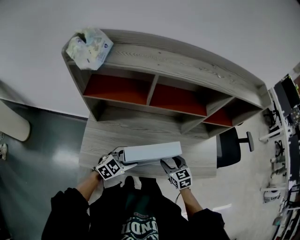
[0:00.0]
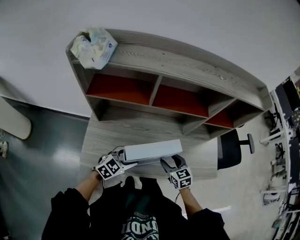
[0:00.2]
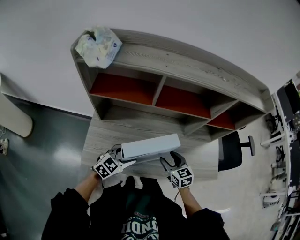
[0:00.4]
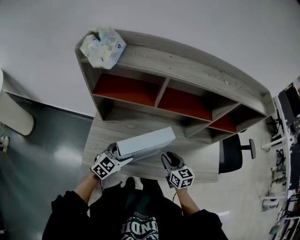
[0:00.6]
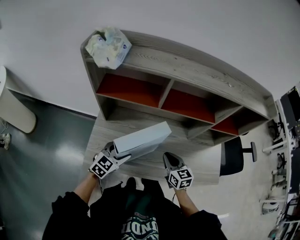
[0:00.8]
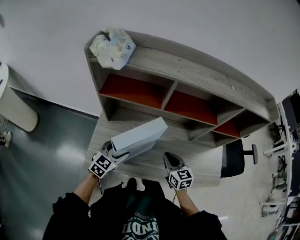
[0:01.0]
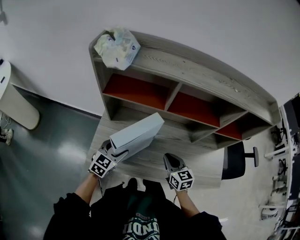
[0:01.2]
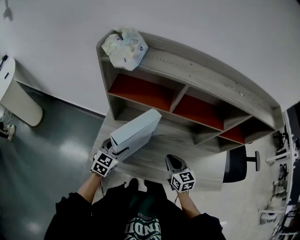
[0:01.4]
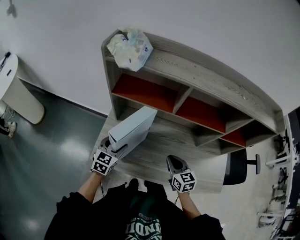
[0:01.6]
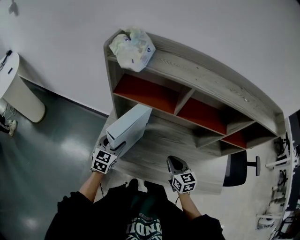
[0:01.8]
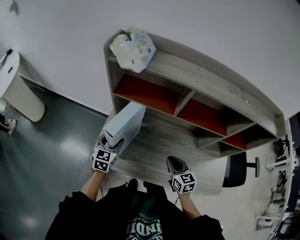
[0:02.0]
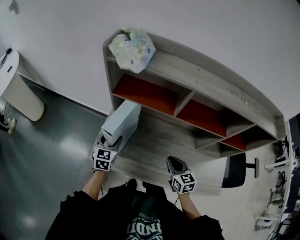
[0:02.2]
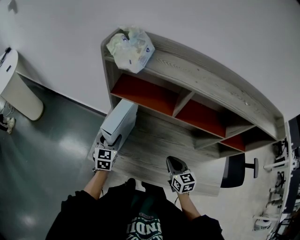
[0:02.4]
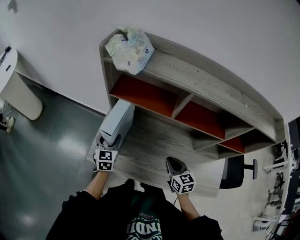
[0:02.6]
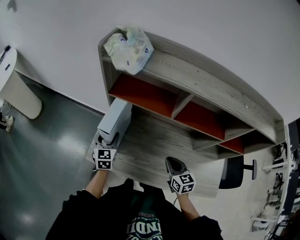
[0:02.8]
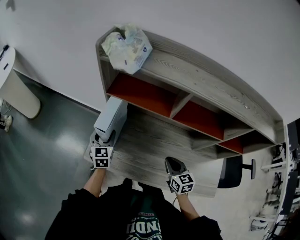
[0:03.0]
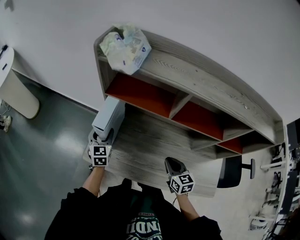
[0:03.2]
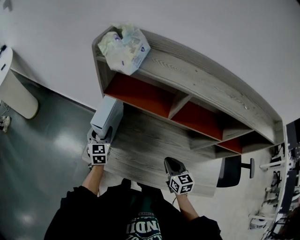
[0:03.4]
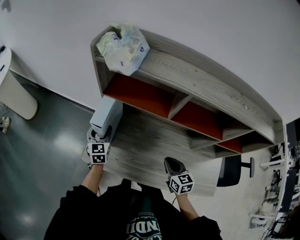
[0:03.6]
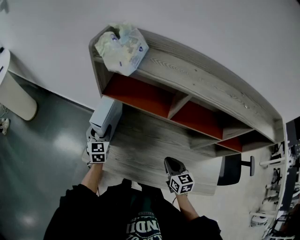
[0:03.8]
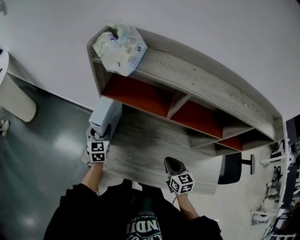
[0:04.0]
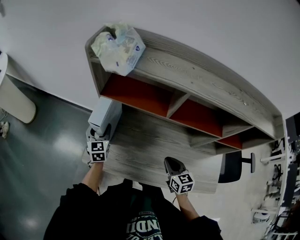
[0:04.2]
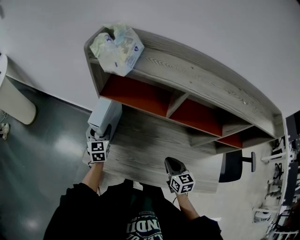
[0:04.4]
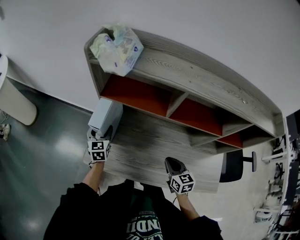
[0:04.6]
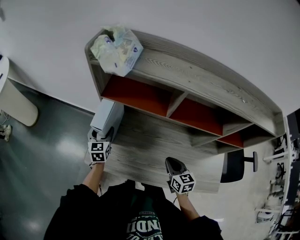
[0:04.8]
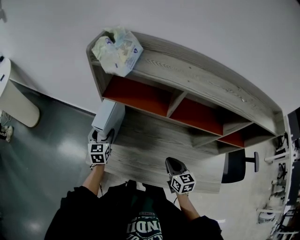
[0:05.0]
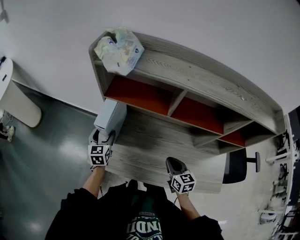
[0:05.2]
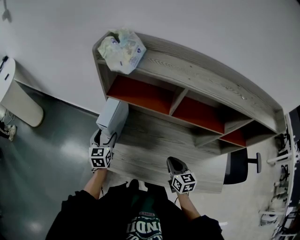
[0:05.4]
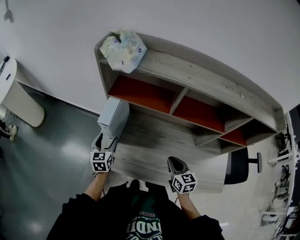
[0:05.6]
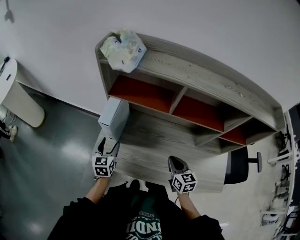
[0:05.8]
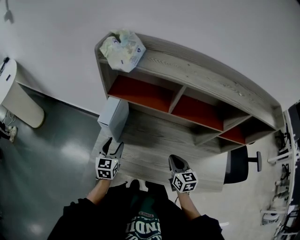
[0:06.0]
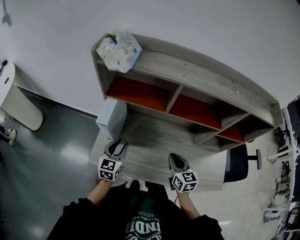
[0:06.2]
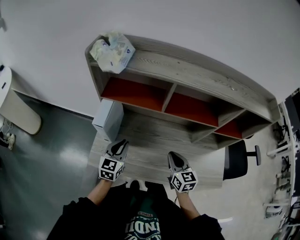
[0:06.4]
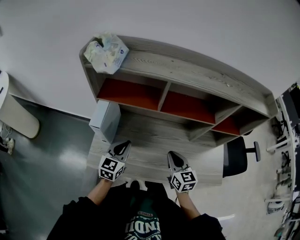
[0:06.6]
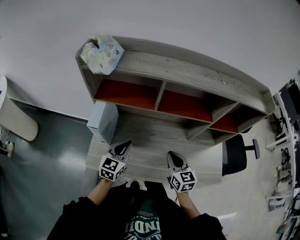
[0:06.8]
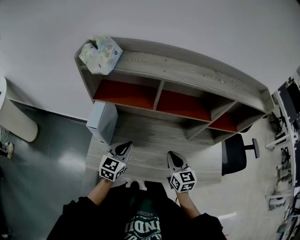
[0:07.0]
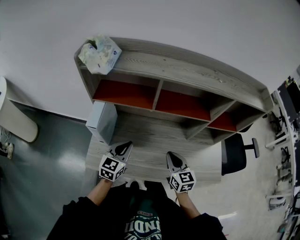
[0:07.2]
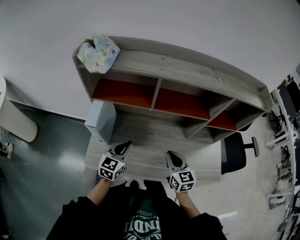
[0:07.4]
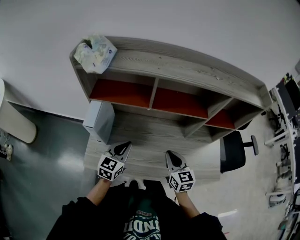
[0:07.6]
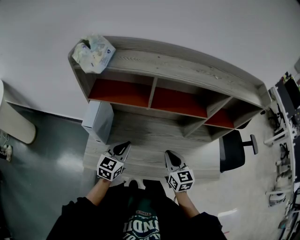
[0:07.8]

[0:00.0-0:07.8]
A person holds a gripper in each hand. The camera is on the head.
0:00.0 to 0:01.6: The left gripper is displaced to the left by roughly 20 cm, and swivels approximately 40 degrees. The right gripper heads to the left, covering roughly 10 cm, and closes up.
0:01.6 to 0:03.2: The left gripper heads forward and to the left, covering approximately 10 cm, and turns by roughly 30 degrees.
0:03.2 to 0:04.6: The grippers stay close to where they were, moving slightly.
0:04.6 to 0:06.2: The left gripper moves backward and to the right, about 15 cm, and closes.
0:06.2 to 0:07.8: The left gripper is displaced to the right by some 10 cm, and closes up.

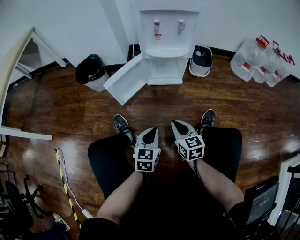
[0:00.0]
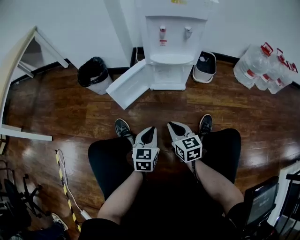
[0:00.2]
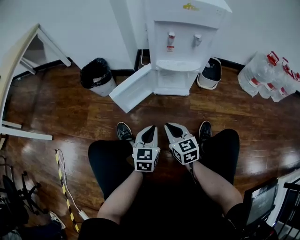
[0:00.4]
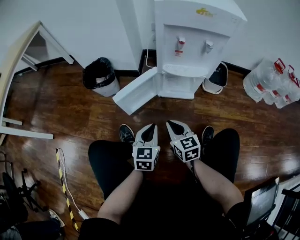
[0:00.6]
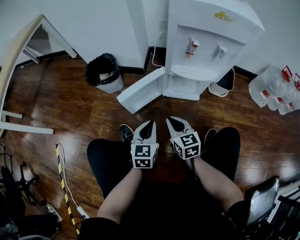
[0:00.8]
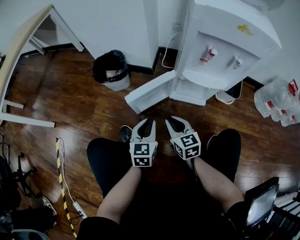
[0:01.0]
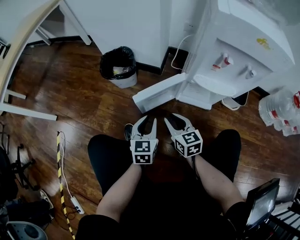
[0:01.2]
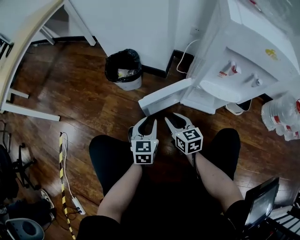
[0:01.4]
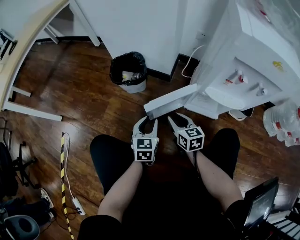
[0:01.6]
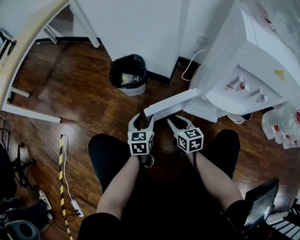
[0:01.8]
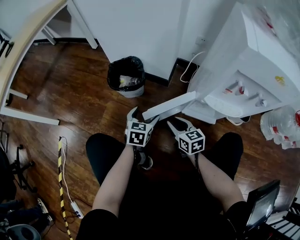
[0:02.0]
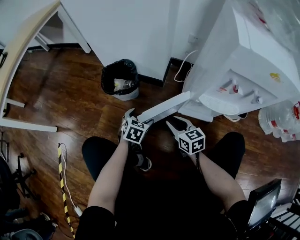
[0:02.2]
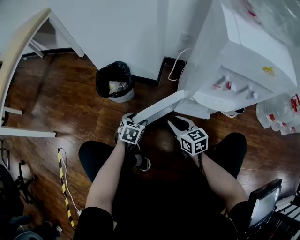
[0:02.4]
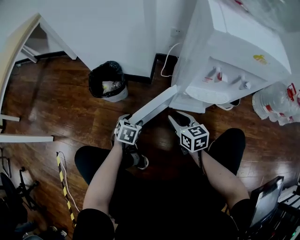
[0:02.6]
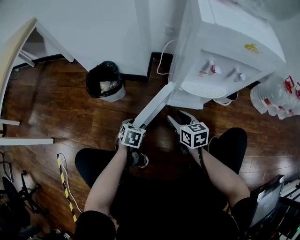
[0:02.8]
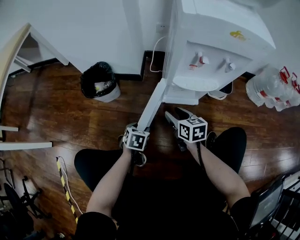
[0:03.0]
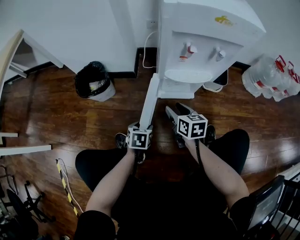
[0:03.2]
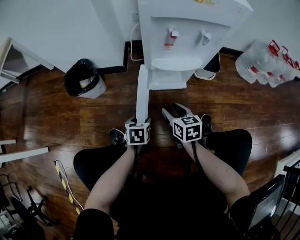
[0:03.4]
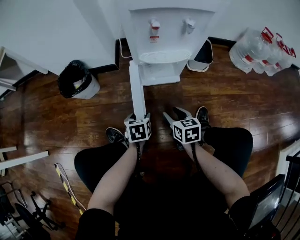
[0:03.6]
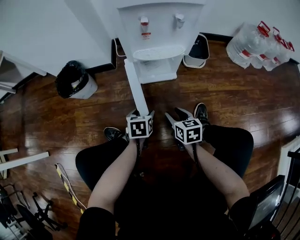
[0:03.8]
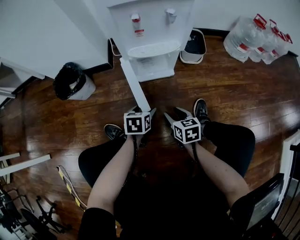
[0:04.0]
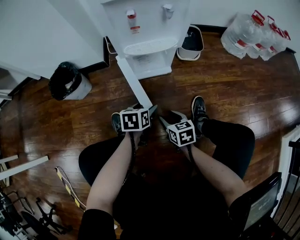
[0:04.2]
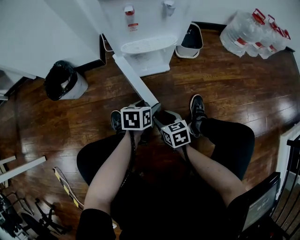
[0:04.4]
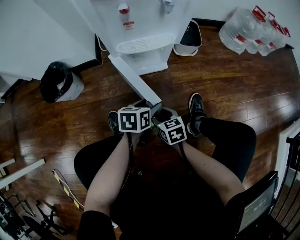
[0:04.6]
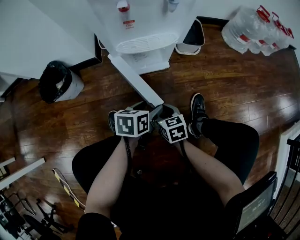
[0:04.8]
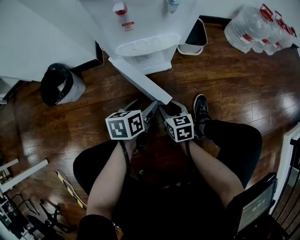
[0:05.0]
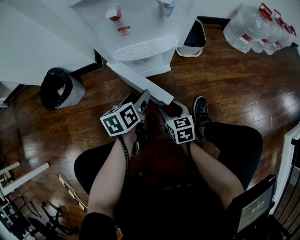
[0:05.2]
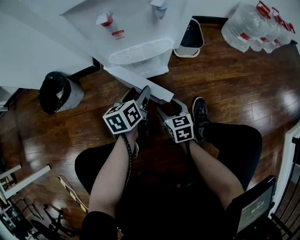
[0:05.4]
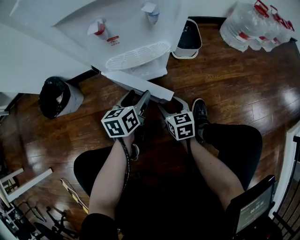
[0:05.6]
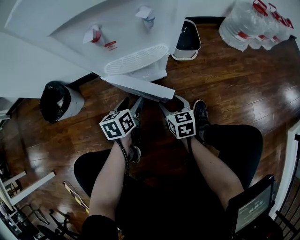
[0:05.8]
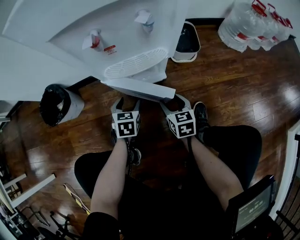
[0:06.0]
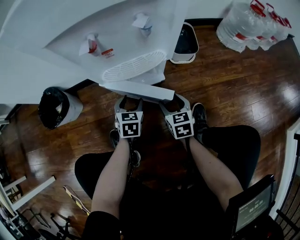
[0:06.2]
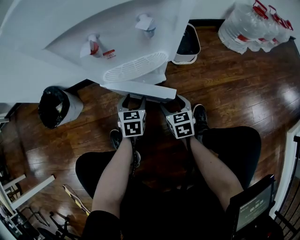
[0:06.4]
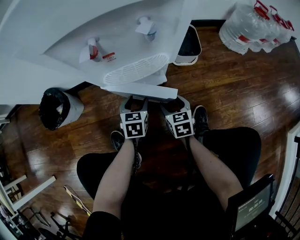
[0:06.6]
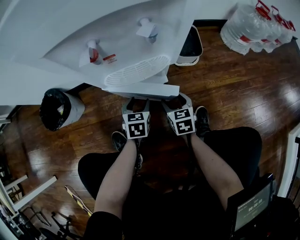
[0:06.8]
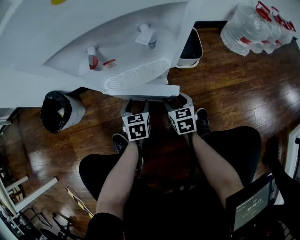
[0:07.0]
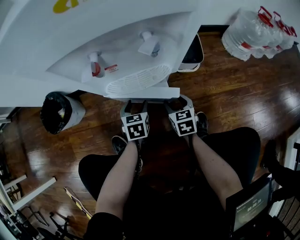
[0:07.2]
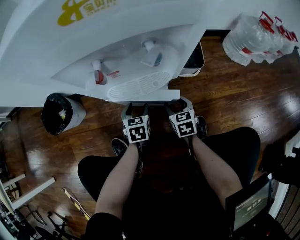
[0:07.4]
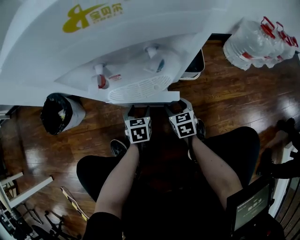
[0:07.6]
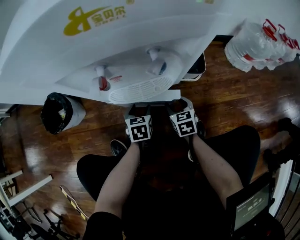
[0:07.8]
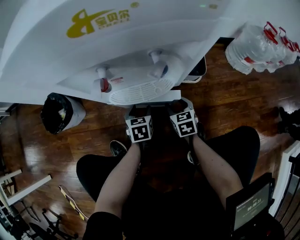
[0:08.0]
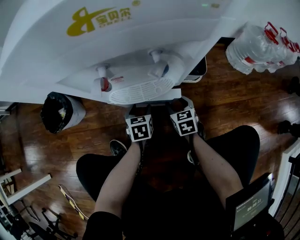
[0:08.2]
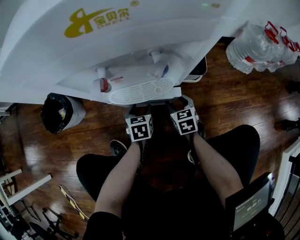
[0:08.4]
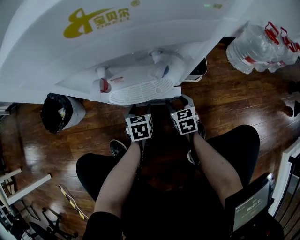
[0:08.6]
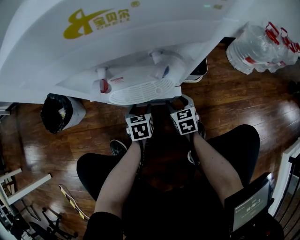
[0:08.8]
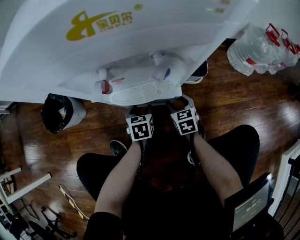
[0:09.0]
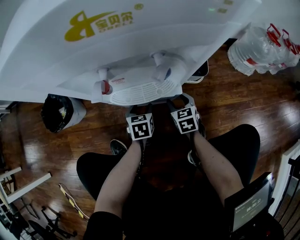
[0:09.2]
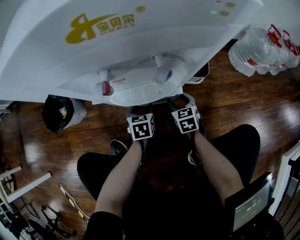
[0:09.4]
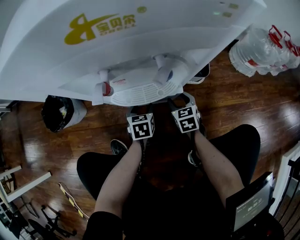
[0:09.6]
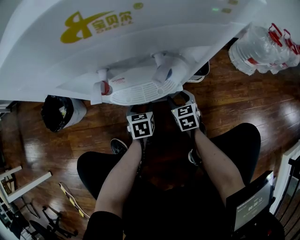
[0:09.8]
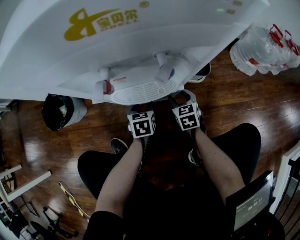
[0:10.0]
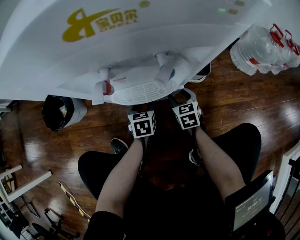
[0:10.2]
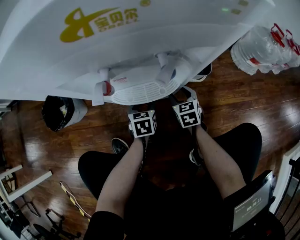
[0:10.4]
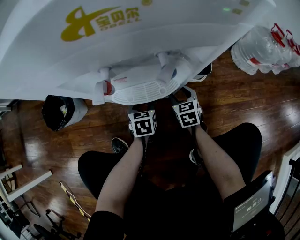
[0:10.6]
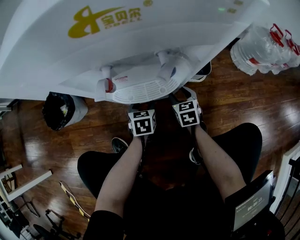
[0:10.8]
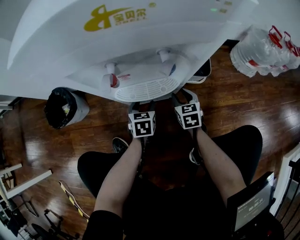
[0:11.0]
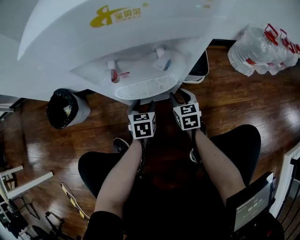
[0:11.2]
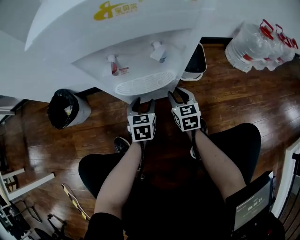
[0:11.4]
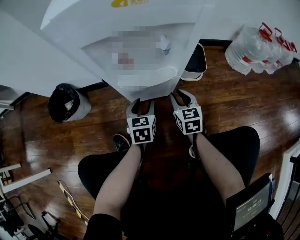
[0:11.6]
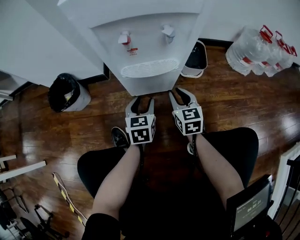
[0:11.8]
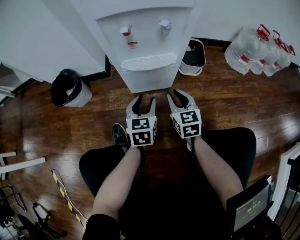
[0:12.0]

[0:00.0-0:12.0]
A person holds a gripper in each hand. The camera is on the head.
0:00.0 to 0:01.6: The two grippers go roughly 30 cm forward and to the left. The right gripper swivels roughly 20 degrees, and opens; the left gripper turns by about 20 degrees.
0:01.6 to 0:03.0: The left gripper heads downward and to the right, covering about 10 cm, moves some 10 cm forward and comes back, tips its fingers downward by some 30 degrees, and opens, then closes again. The right gripper moves to the right, roughly 10 cm.
0:03.0 to 0:04.4: The left gripper is displaced to the right by about 20 cm, and swivels some 20 degrees; the right gripper goes approximately 20 cm backward, downward and to the right.
0:04.4 to 0:06.0: The left gripper heads forward and to the left, covering roughly 15 cm, and changes its angle by about 30 degrees; the right gripper travels forward and to the right by about 15 cm.
0:06.0 to 0:07.6: The right gripper is displaced forward by roughly 10 cm. The left gripper ends up about 5 cm from where it was.
0:07.6 to 0:09.0: The grippers move only a little.
0:09.0 to 0:10.4: The grippers stay close to where they were, moving slightly.
0:10.4 to 0:12.0: The right gripper goes some 20 cm backward and upward, and closes, while the left gripper goes approximately 20 cm upward and backward, and changes its angle by roughly 20 degrees.

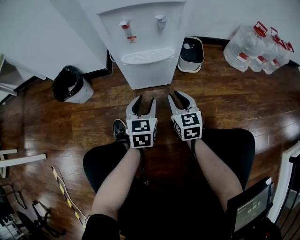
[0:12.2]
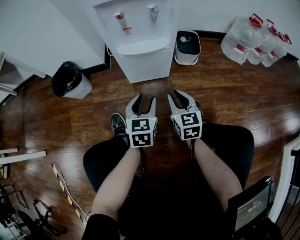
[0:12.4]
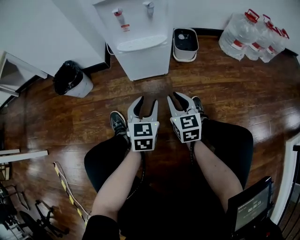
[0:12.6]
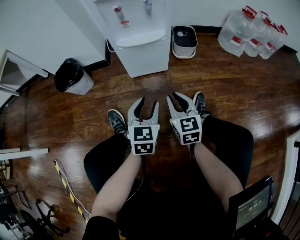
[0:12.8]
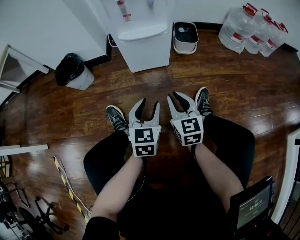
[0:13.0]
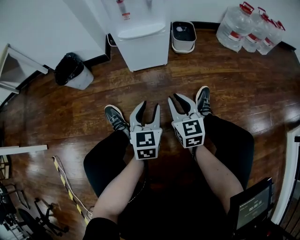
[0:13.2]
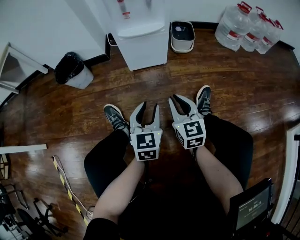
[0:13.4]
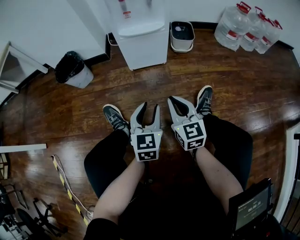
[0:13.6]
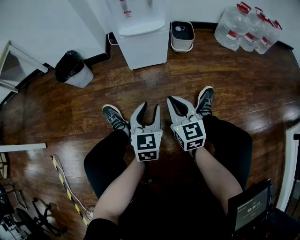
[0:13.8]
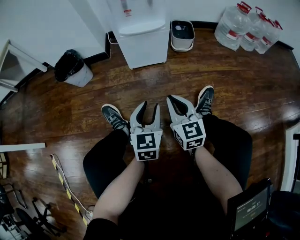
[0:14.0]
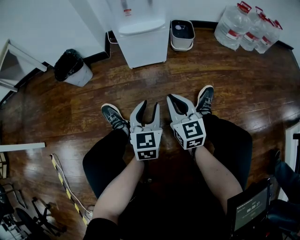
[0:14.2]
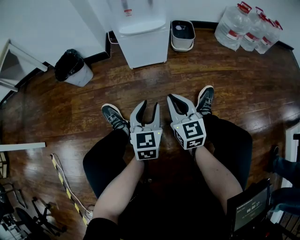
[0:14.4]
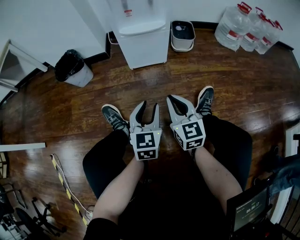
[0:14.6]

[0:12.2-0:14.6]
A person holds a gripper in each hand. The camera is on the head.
0:12.2 to 0:13.4: Both grippers travel together backward, about 20 cm.
0:13.4 to 0:14.6: The grippers stay close to where they were, moving slightly.

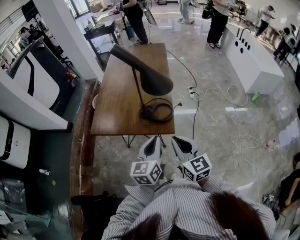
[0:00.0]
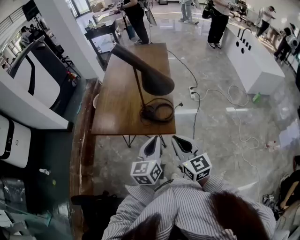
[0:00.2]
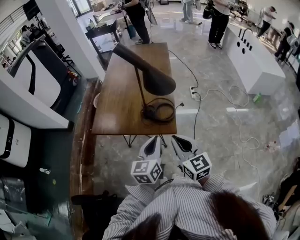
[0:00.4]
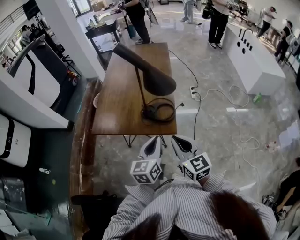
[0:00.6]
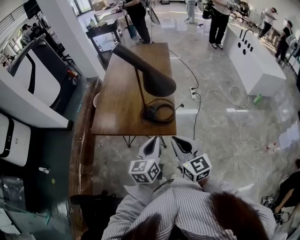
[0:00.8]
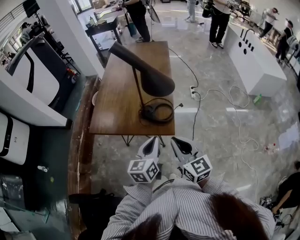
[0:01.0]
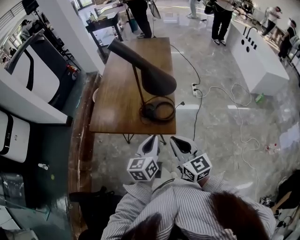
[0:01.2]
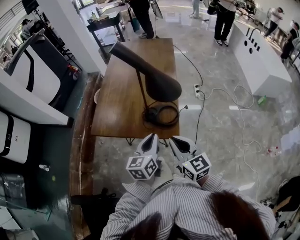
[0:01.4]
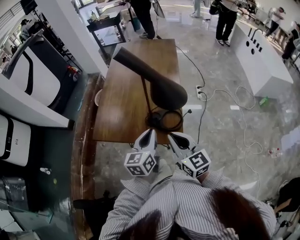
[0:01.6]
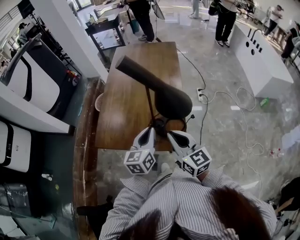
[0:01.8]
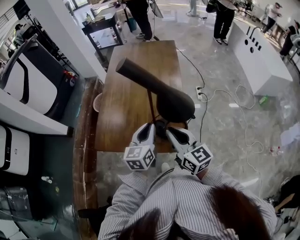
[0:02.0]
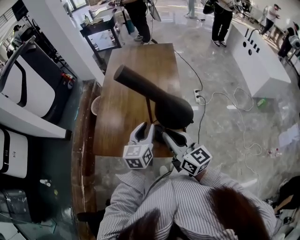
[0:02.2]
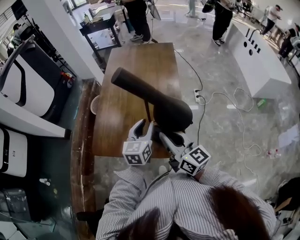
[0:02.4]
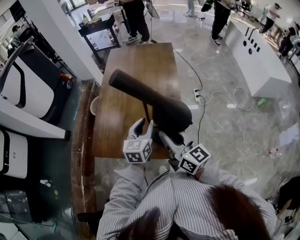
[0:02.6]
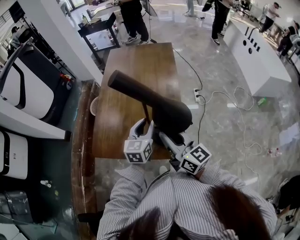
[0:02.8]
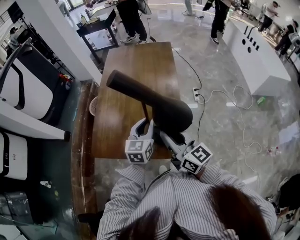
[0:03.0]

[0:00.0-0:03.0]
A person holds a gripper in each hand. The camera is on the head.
0:00.0 to 0:01.6: The grippers both shift forward by roughly 10 cm.
0:01.6 to 0:03.0: The grippers both shift forward by roughly 10 cm.
